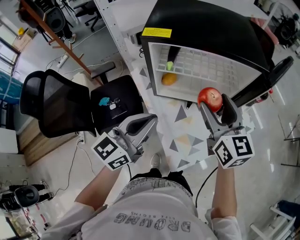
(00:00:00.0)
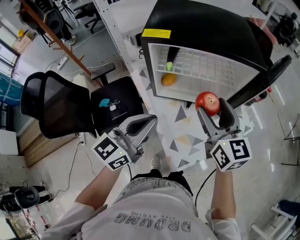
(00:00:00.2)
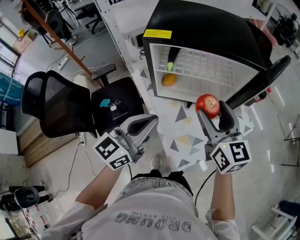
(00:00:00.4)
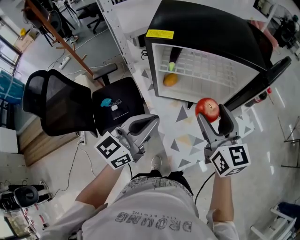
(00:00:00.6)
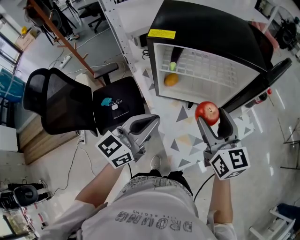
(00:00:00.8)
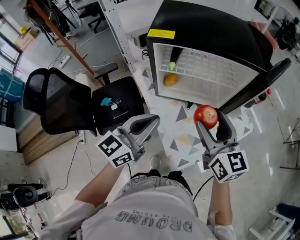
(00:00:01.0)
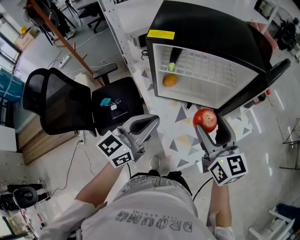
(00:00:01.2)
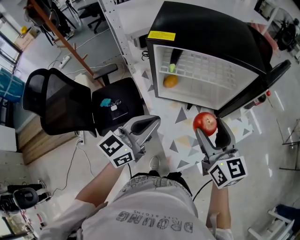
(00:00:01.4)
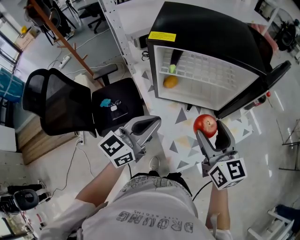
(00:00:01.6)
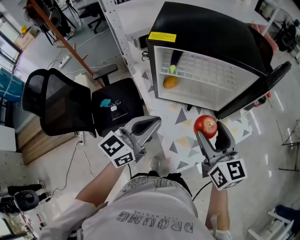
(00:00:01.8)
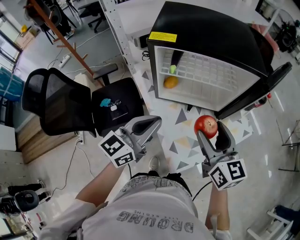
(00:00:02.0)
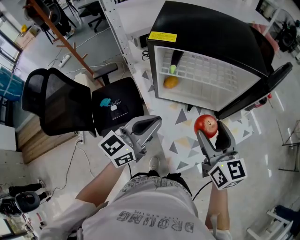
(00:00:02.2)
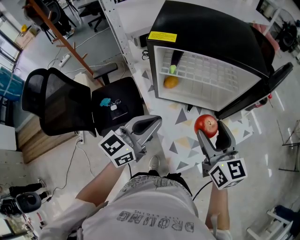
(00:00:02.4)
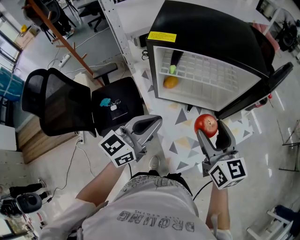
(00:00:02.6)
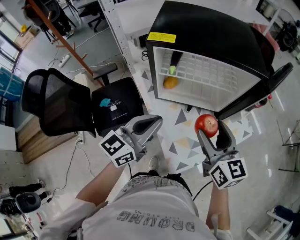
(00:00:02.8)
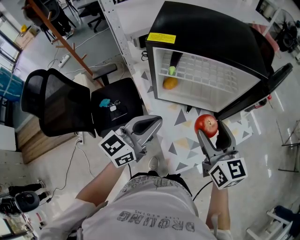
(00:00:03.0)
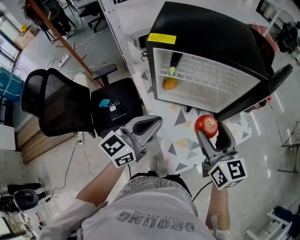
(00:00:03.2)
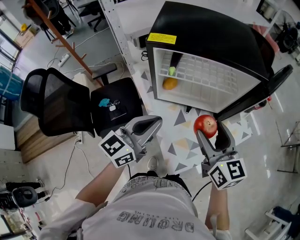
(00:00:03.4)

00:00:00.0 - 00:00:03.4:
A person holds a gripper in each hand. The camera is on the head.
00:00:00.0 - 00:00:01.6: The right gripper shifts approximately 10 cm backward.
00:00:01.6 - 00:00:03.4: The grippers make only small movements.

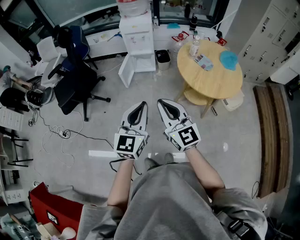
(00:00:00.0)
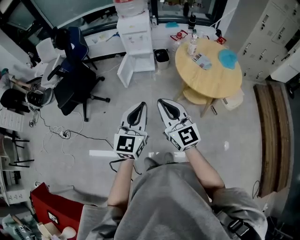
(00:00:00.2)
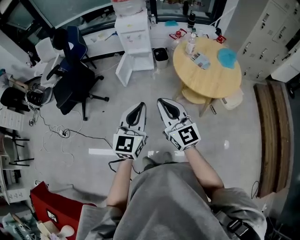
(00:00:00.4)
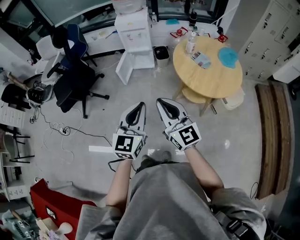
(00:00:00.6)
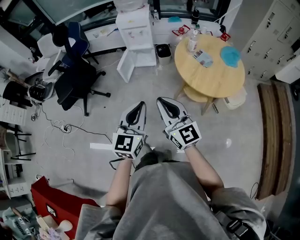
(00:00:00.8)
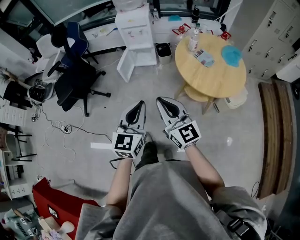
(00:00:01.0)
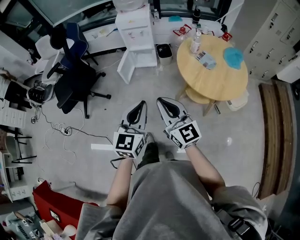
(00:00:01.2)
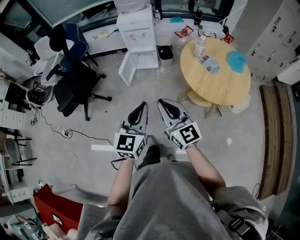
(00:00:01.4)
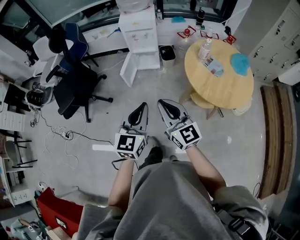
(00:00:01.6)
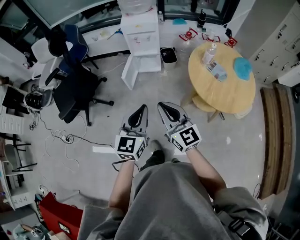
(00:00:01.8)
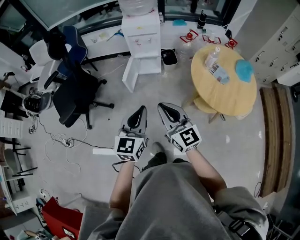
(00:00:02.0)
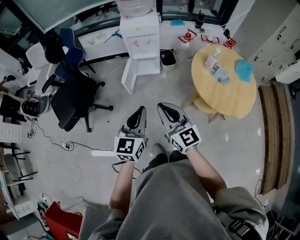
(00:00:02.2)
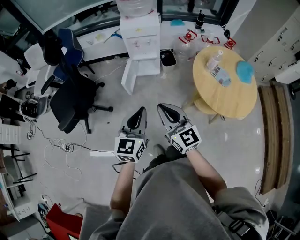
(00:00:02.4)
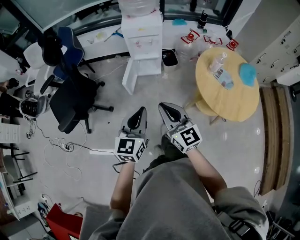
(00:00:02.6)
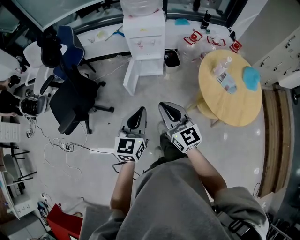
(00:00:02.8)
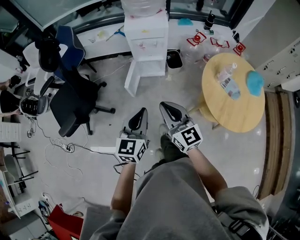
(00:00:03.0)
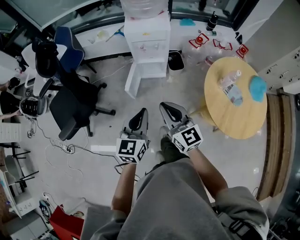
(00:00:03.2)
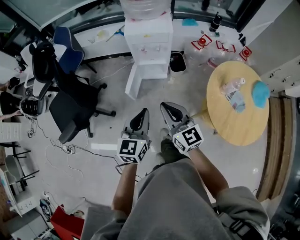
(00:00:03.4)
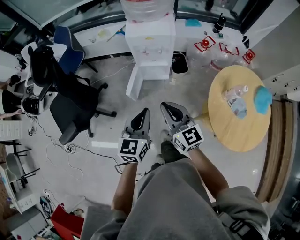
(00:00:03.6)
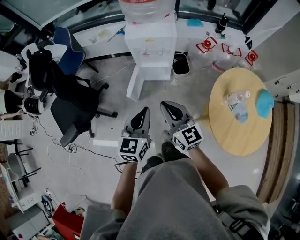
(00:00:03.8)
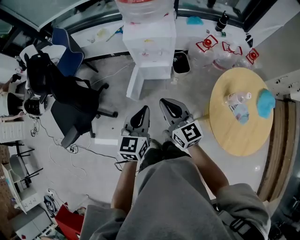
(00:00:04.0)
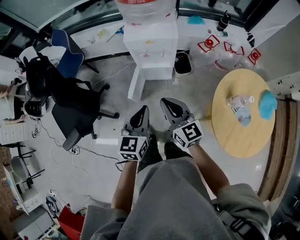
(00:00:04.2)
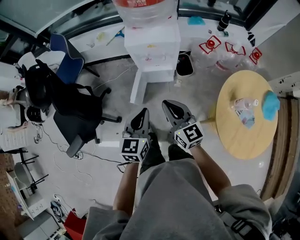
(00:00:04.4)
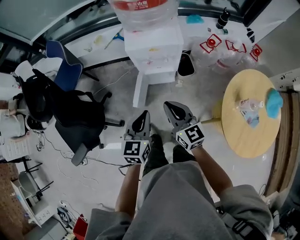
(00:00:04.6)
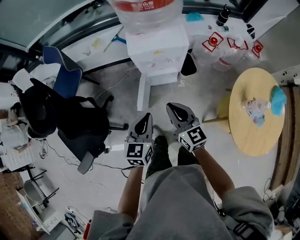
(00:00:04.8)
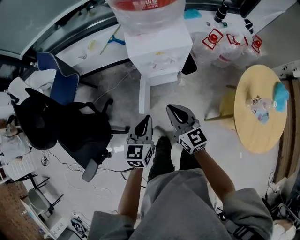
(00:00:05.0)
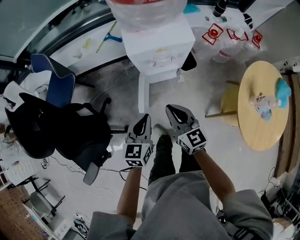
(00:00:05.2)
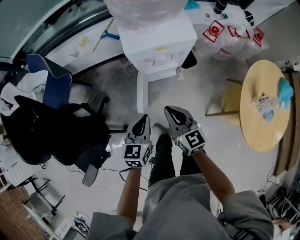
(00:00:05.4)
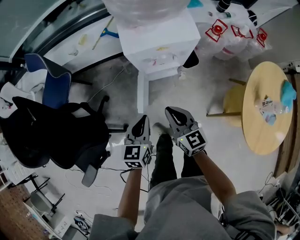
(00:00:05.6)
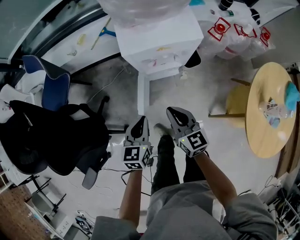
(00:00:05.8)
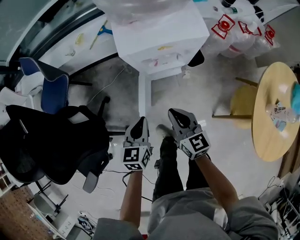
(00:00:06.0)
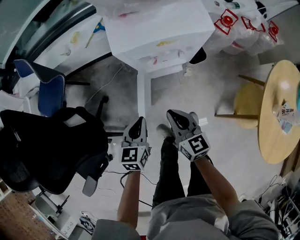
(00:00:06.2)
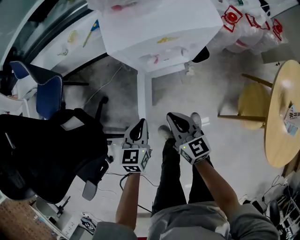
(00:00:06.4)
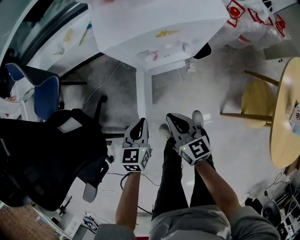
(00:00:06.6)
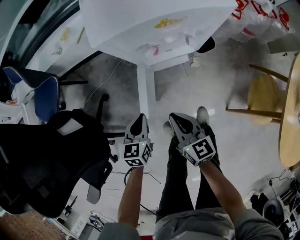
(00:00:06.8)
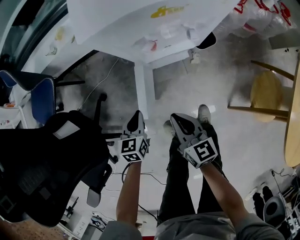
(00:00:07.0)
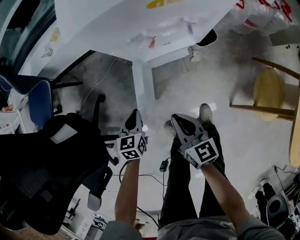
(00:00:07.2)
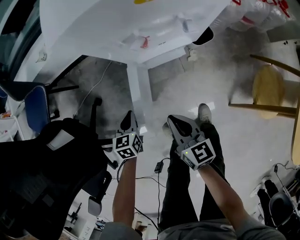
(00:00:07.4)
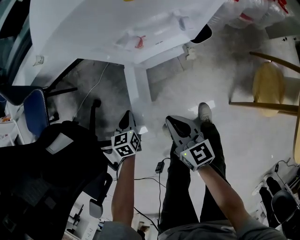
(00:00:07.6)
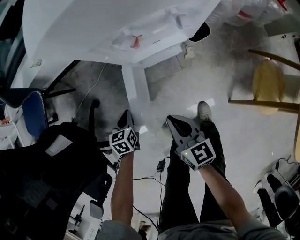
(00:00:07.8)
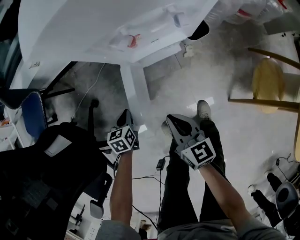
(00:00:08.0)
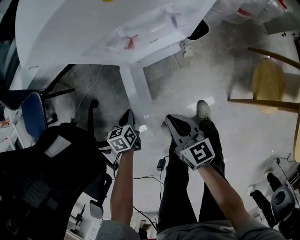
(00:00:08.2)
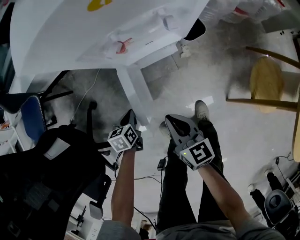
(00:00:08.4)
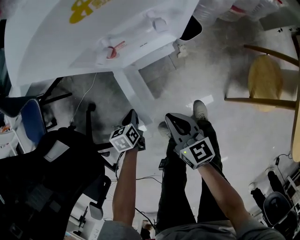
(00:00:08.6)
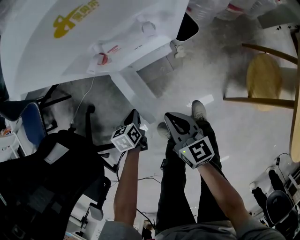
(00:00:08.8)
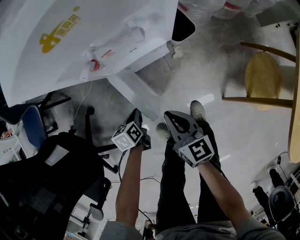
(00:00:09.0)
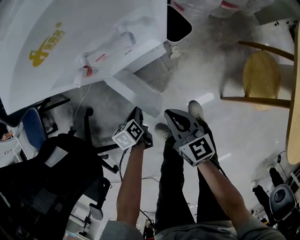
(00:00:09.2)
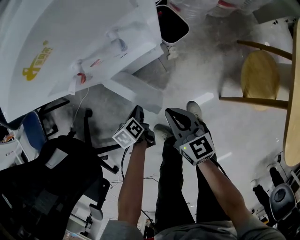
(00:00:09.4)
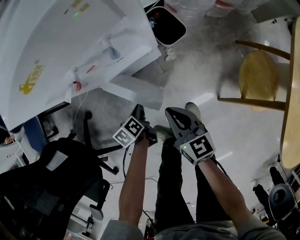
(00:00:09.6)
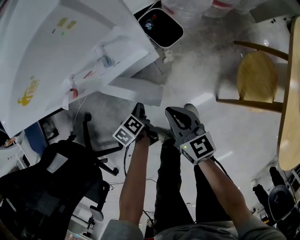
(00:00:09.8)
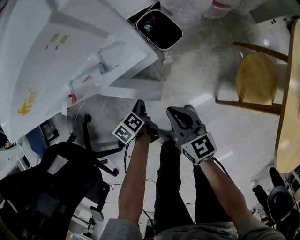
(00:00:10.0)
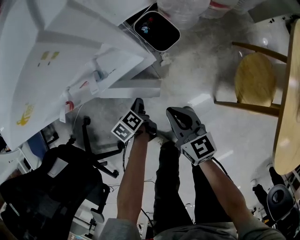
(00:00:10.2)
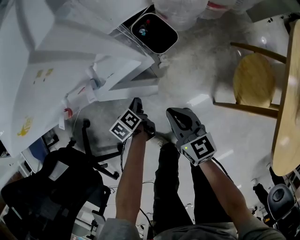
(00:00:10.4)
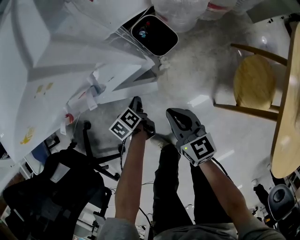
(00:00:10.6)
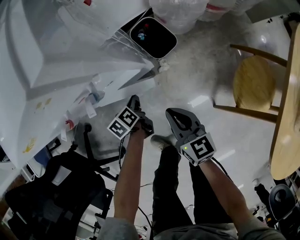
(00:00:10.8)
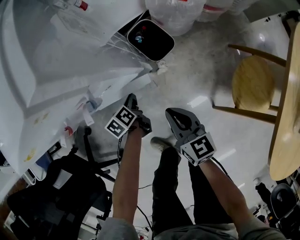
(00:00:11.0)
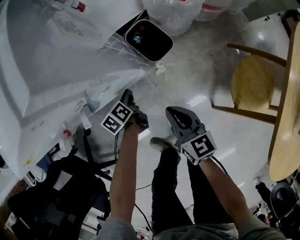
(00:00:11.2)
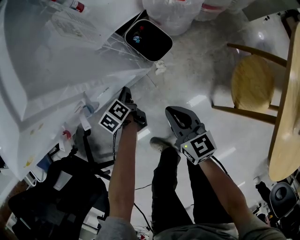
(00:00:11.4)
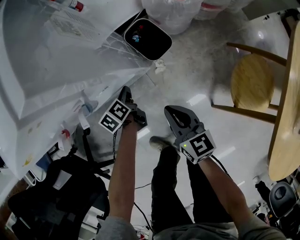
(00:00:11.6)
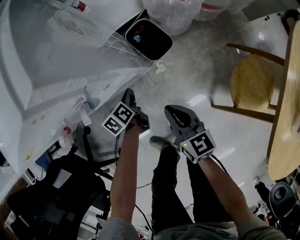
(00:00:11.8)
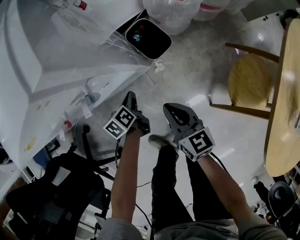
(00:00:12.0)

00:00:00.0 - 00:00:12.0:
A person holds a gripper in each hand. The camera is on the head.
00:00:00.0 - 00:00:01.6: Both grippers travel together forward, about 10 cm.
00:00:01.6 - 00:00:03.0: The right gripper travels forward by some 20 cm. Meanwhile the left gripper travels forward and to the left by some 20 cm.
00:00:03.0 - 00:00:04.4: Both grippers move forward, roughly 20 cm.
00:00:04.4 - 00:00:06.0: The right gripper moves downward and forward, roughly 25 cm. Meanwhile the left gripper moves downward, forward and to the left, approximately 25 cm.
00:00:06.0 - 00:00:07.6: The left gripper is displaced downward by roughly 35 cm; the right gripper moves downward, roughly 20 cm.
00:00:07.6 - 00:00:09.0: The two grippers go some 10 cm to the right. The left gripper changes its angle by some 20 degrees.
00:00:09.0 - 00:00:10.4: The two grippers go some 15 cm to the right and forward.
00:00:10.4 - 00:00:12.0: The left gripper shifts about 5 cm forward.

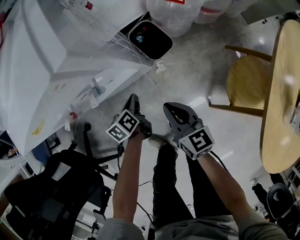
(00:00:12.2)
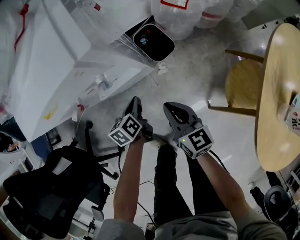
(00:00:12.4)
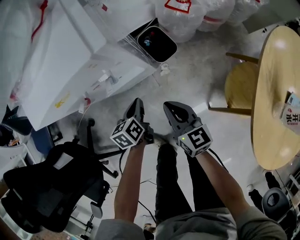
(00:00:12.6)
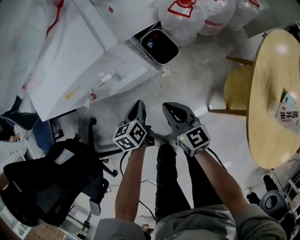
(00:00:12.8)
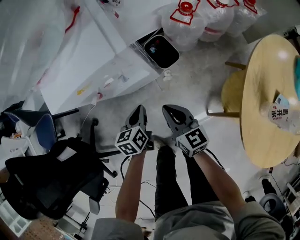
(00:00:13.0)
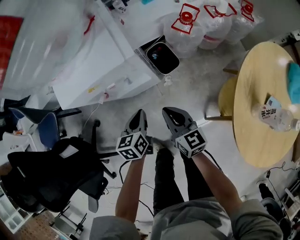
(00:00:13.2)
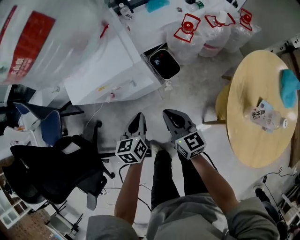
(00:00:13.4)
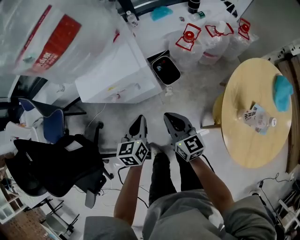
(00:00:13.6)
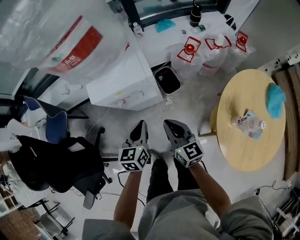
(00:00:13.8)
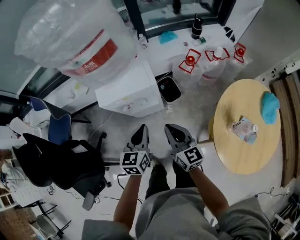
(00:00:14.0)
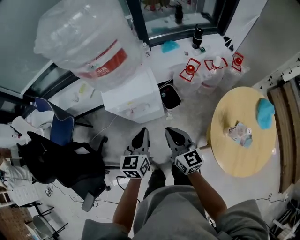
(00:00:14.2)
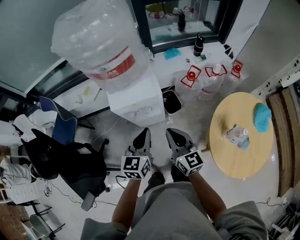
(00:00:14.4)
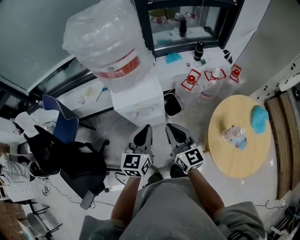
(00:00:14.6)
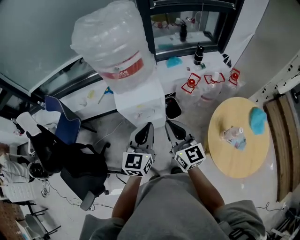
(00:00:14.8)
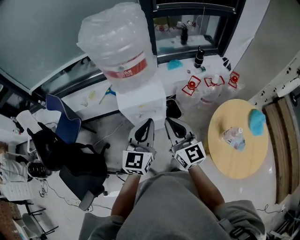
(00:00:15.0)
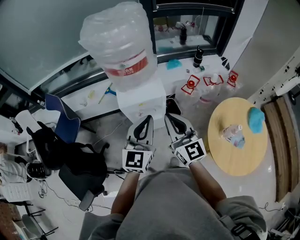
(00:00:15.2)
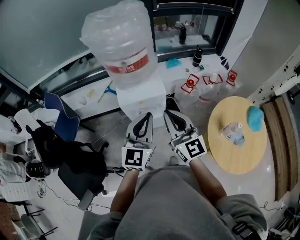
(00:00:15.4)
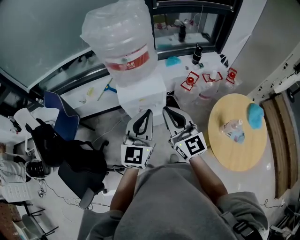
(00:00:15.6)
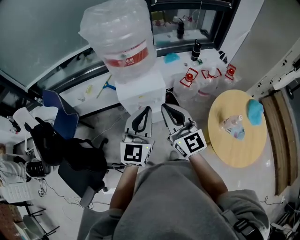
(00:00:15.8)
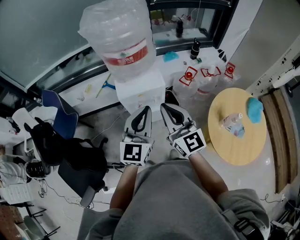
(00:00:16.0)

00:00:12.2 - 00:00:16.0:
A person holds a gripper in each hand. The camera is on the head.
00:00:12.2 - 00:00:13.4: Both grippers move upward, approximately 25 cm. The left gripper swivels roughly 20 degrees.
00:00:13.4 - 00:00:14.8: The grippers both shift upward by approximately 35 cm. The right gripper turns by approximately 20 degrees. The left gripper swivels roughly 30 degrees.
00:00:14.8 - 00:00:16.0: The right gripper travels upward and to the left by approximately 10 cm, while the left gripper travels upward by approximately 5 cm.

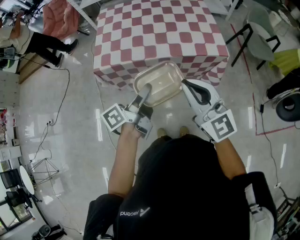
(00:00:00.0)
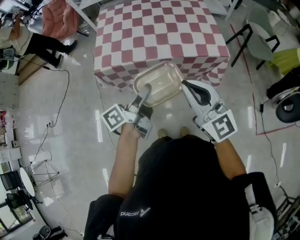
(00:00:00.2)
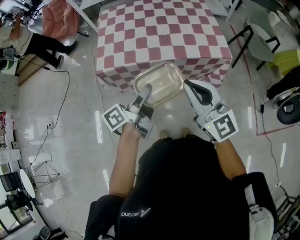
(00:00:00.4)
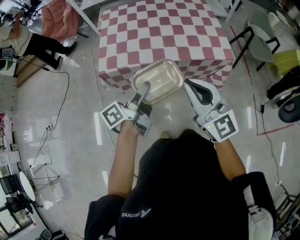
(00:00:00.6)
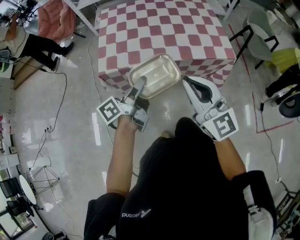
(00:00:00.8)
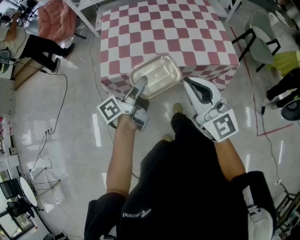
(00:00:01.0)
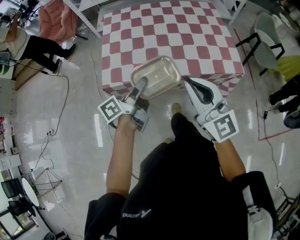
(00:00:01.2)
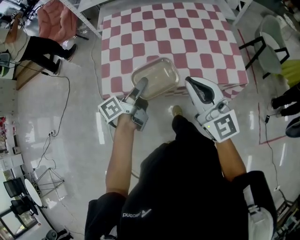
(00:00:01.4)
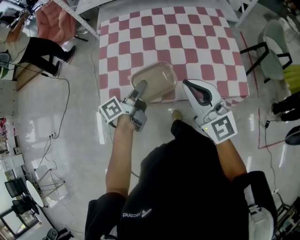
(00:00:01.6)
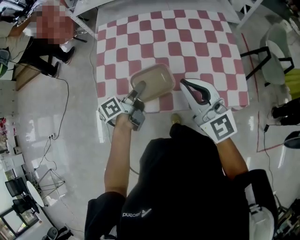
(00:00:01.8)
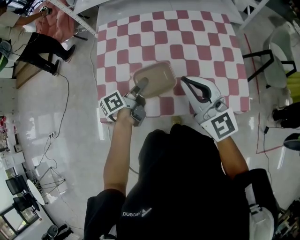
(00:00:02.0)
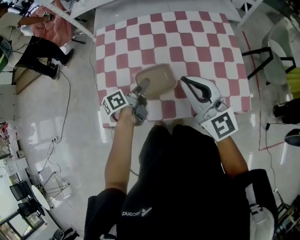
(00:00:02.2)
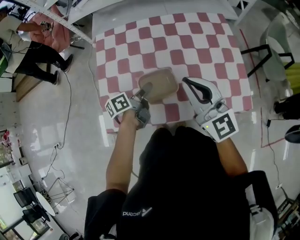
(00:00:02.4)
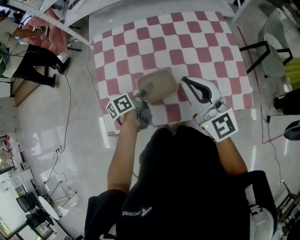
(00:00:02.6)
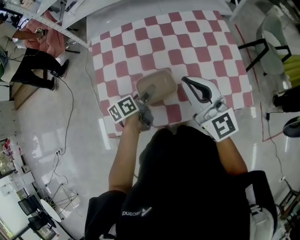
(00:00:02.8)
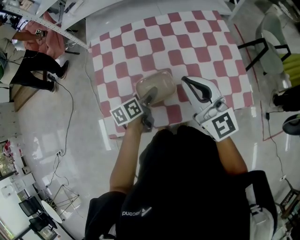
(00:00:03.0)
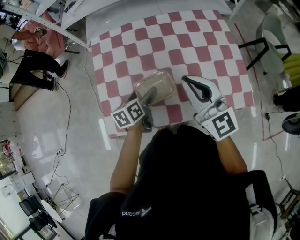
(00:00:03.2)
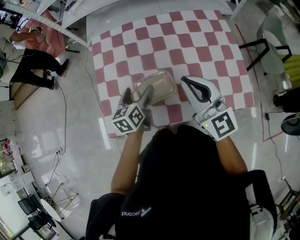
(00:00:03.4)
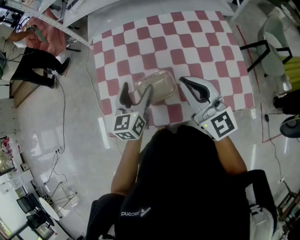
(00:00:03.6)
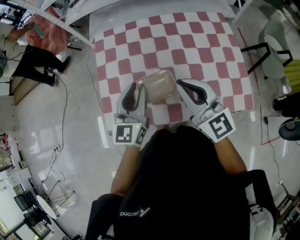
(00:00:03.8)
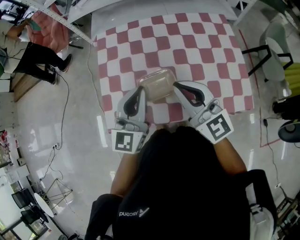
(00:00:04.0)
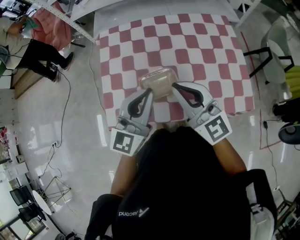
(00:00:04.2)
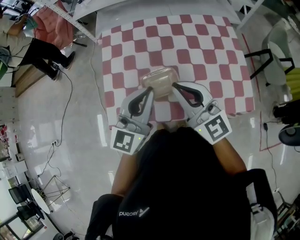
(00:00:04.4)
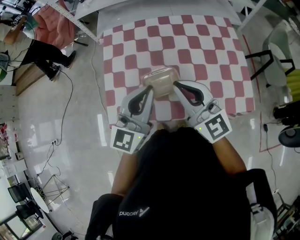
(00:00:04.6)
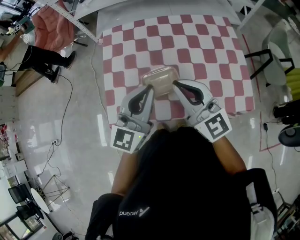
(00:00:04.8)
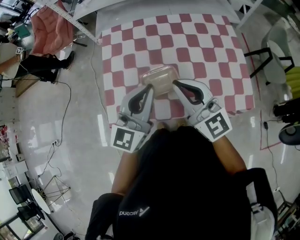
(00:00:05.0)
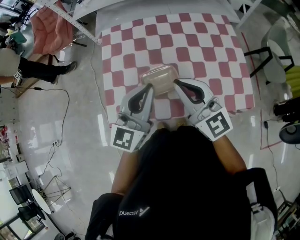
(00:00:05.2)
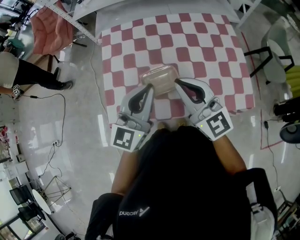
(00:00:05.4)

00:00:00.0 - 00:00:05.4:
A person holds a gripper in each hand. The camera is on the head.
00:00:00.0 - 00:00:01.4: Both grippers travel together forward and to the left, some 25 cm.
00:00:01.4 - 00:00:02.8: The left gripper goes roughly 25 cm forward and downward, and turns by some 30 degrees. Meanwhile the right gripper goes about 20 cm forward.
00:00:02.8 - 00:00:04.0: The left gripper moves upward, approximately 20 cm, rolls clockwise, seen from behind, by some 60 degrees, and closes its fingers.
00:00:04.0 - 00:00:05.4: The grippers stay close to where they were, moving slightly.
